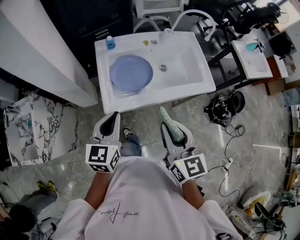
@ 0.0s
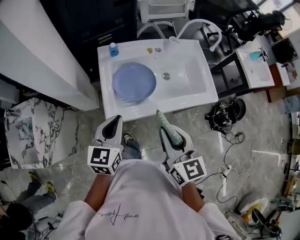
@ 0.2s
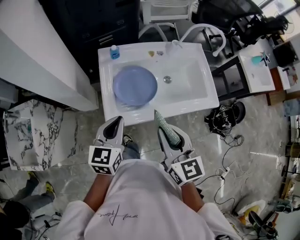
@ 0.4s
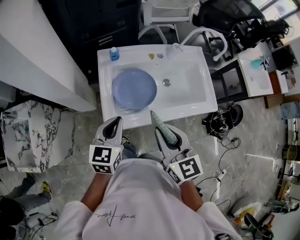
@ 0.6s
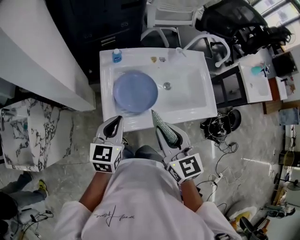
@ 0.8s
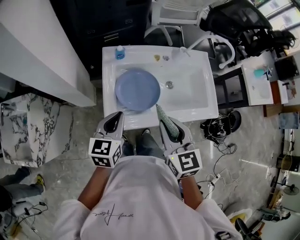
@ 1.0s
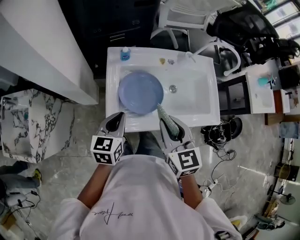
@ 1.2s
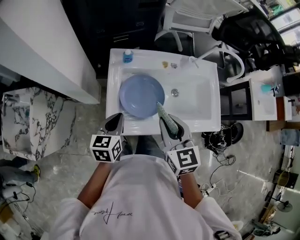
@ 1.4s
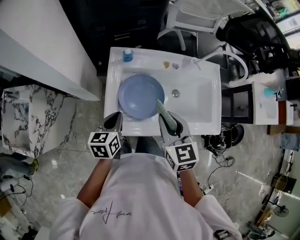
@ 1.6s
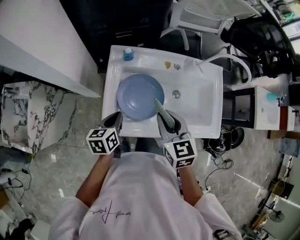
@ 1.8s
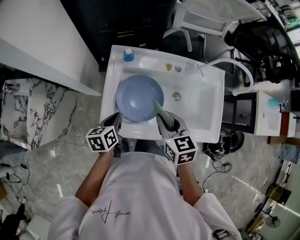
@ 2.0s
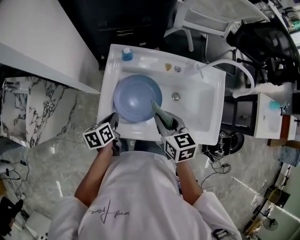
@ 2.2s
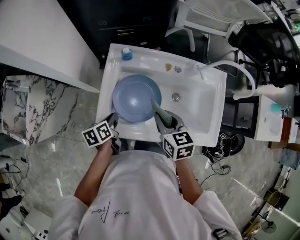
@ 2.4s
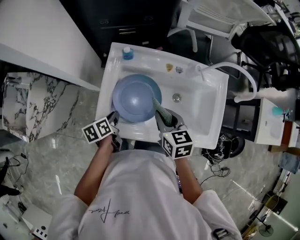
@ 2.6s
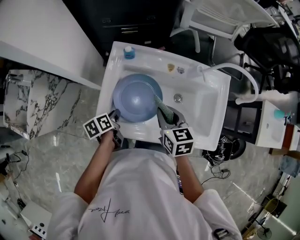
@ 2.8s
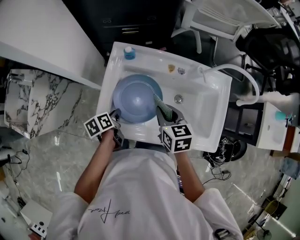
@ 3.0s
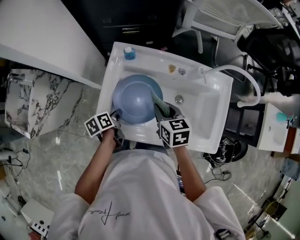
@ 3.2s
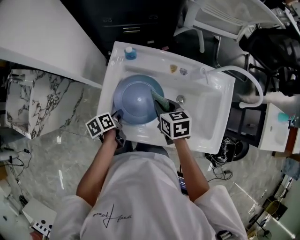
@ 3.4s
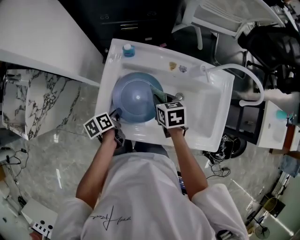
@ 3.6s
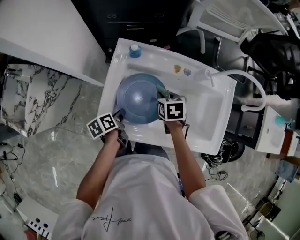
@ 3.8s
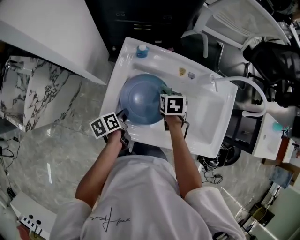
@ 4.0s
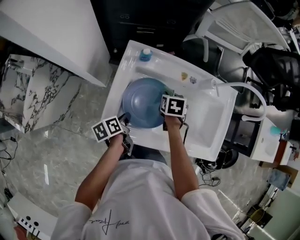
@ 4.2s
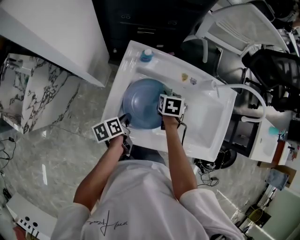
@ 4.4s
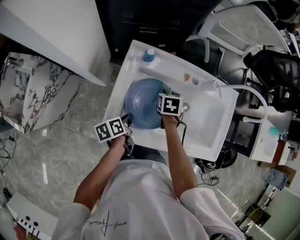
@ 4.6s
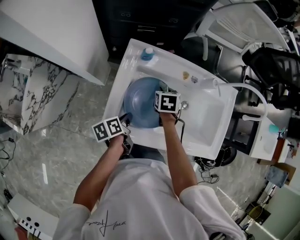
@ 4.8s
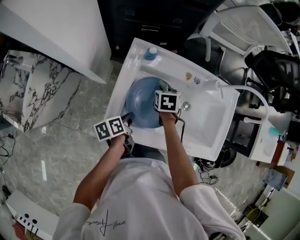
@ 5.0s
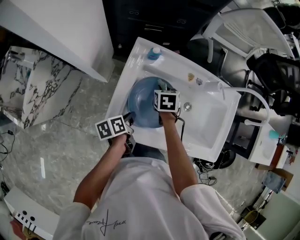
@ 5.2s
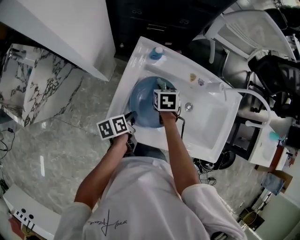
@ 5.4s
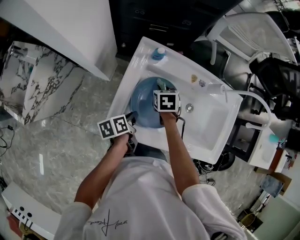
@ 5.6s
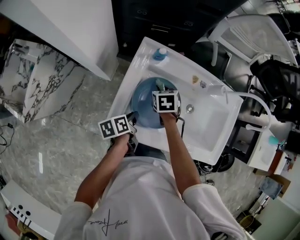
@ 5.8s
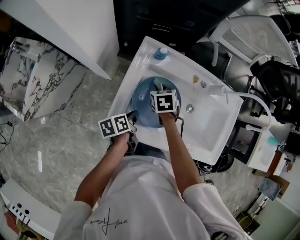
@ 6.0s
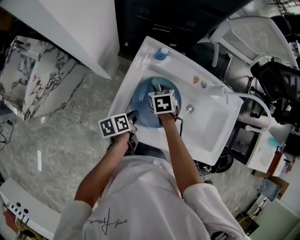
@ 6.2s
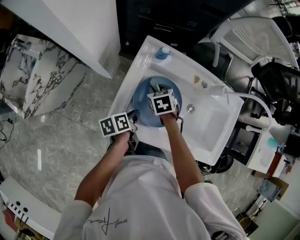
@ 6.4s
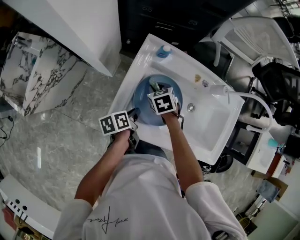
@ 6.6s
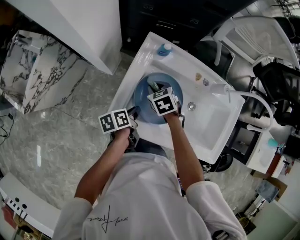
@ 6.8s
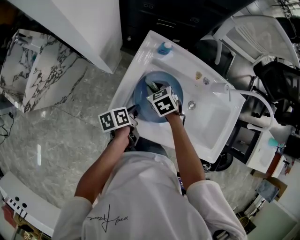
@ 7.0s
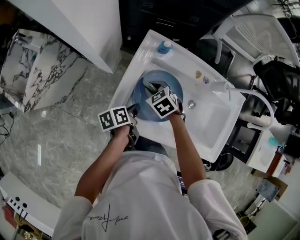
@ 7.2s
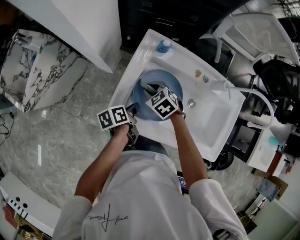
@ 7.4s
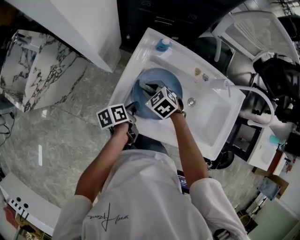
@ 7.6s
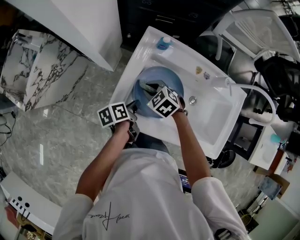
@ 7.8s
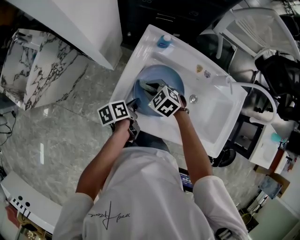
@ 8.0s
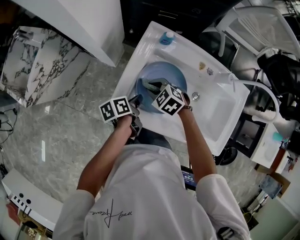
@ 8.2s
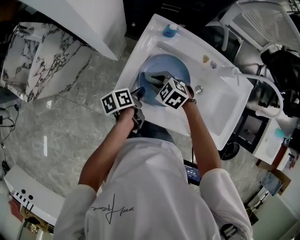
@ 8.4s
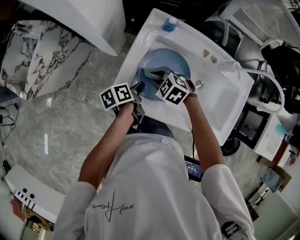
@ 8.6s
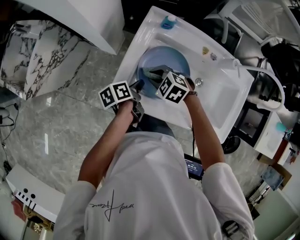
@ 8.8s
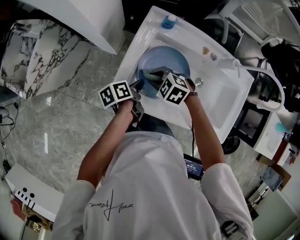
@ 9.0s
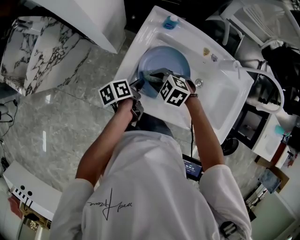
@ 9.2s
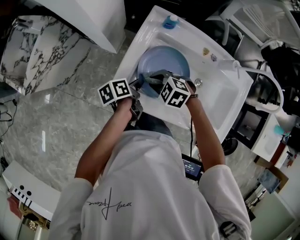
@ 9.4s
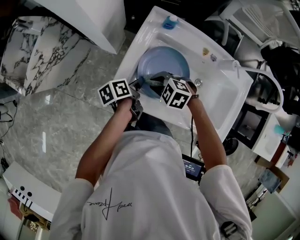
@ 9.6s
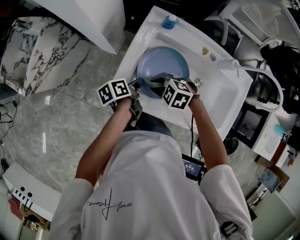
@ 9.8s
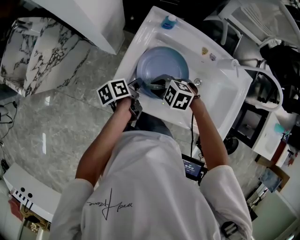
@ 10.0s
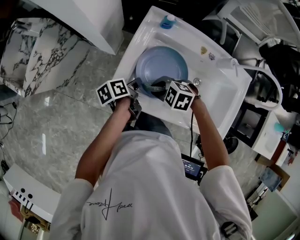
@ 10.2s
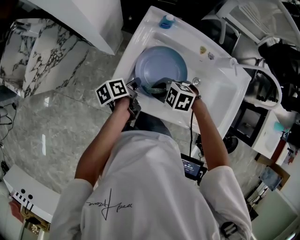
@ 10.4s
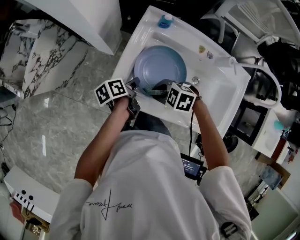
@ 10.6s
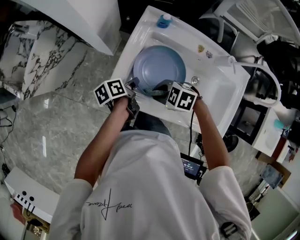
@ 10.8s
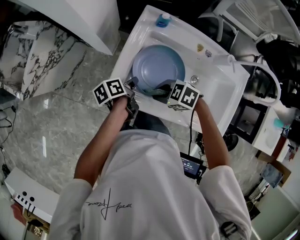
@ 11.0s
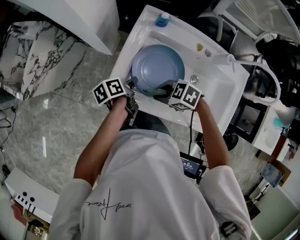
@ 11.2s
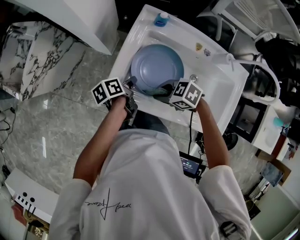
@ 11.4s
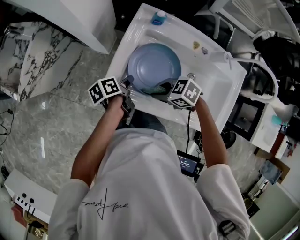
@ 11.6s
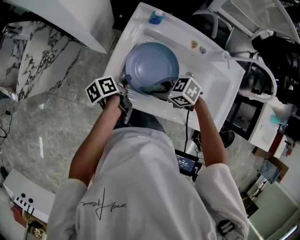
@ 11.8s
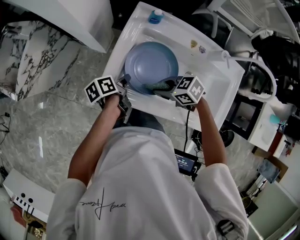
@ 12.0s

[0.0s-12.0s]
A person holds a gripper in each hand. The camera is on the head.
0.0s to 1.6s: The right gripper travels forward by approximately 20 cm, and turns by approximately 20 degrees; the left gripper is displaced forward and downward by about 20 cm, and turns by some 30 degrees.
1.6s to 3.0s: The left gripper heads downward, covering approximately 10 cm, and swivels about 40 degrees. The right gripper travels downward, forward and to the right by some 15 cm, and swivels some 20 degrees.
3.0s to 4.4s: The right gripper goes approximately 15 cm downward and forward, and turns by roughly 30 degrees.
4.4s to 6.0s: The right gripper is displaced to the left by roughly 10 cm, and changes its angle by roughly 20 degrees.
6.0s to 7.6s: The right gripper moves backward and to the left, approximately 10 cm, and turns by about 40 degrees.
7.6s to 9.0s: The right gripper shifts roughly 5 cm backward.
9.0s to 10.4s: The right gripper moves some 5 cm.
10.4s to 12.0s: The right gripper turns by about 30 degrees.

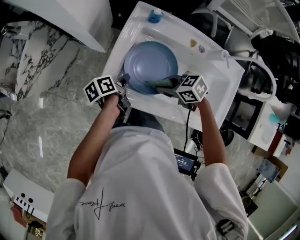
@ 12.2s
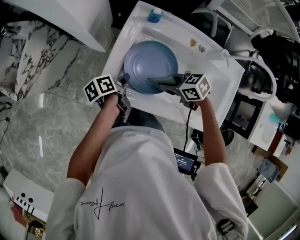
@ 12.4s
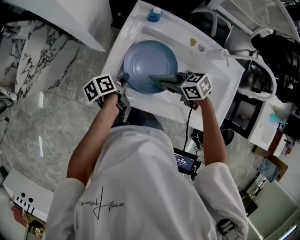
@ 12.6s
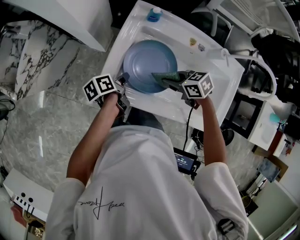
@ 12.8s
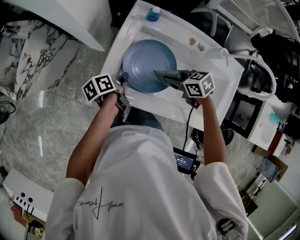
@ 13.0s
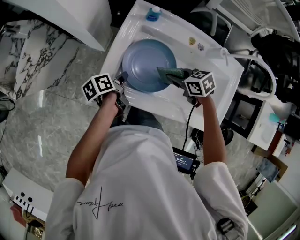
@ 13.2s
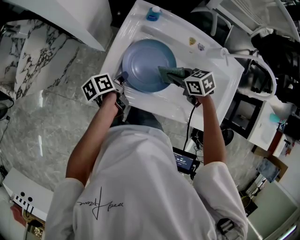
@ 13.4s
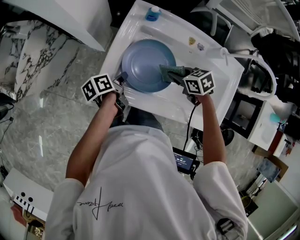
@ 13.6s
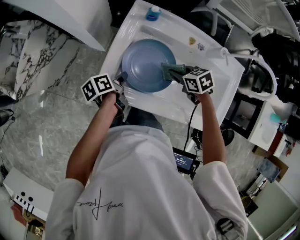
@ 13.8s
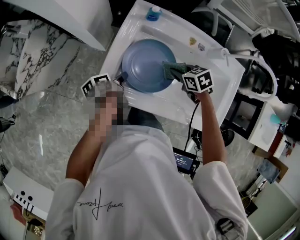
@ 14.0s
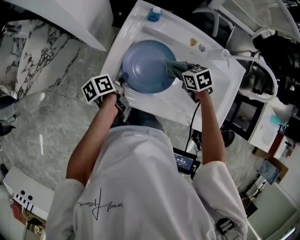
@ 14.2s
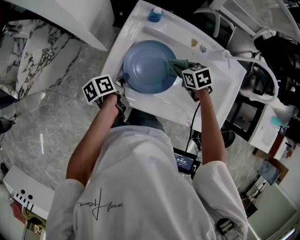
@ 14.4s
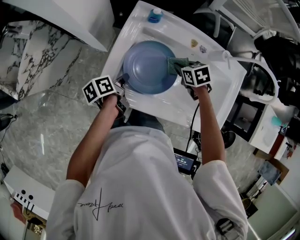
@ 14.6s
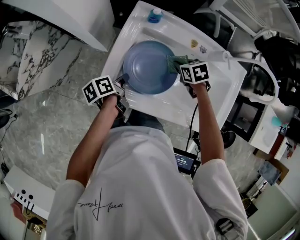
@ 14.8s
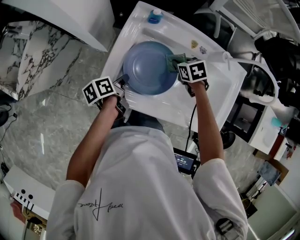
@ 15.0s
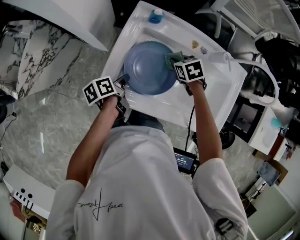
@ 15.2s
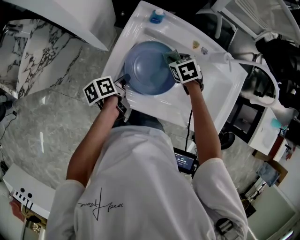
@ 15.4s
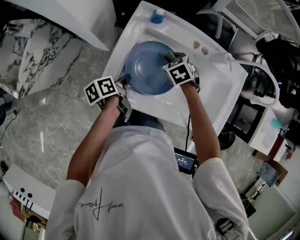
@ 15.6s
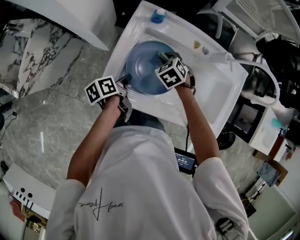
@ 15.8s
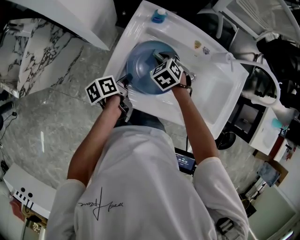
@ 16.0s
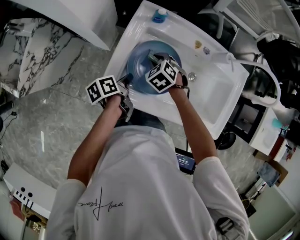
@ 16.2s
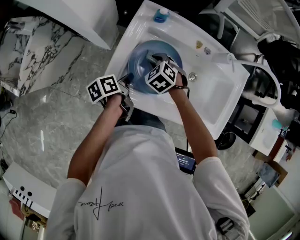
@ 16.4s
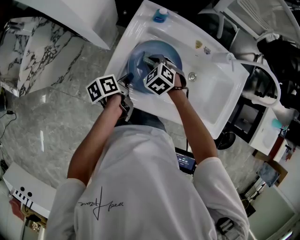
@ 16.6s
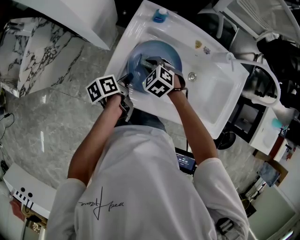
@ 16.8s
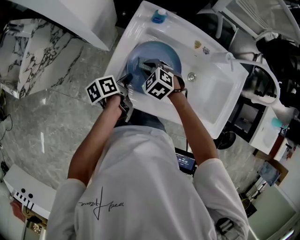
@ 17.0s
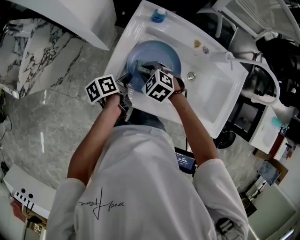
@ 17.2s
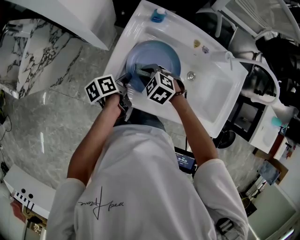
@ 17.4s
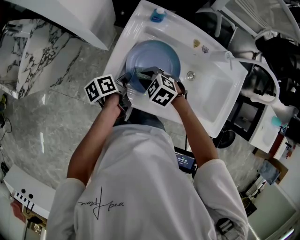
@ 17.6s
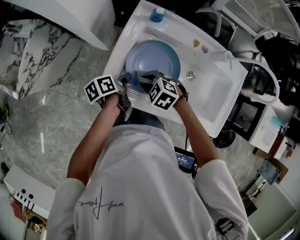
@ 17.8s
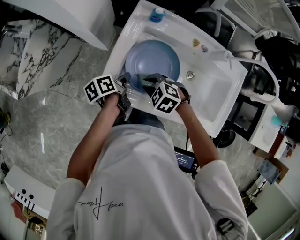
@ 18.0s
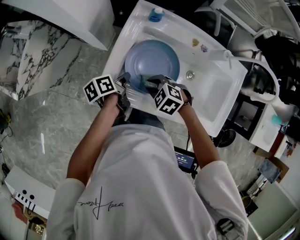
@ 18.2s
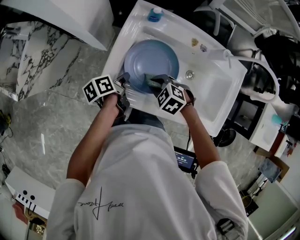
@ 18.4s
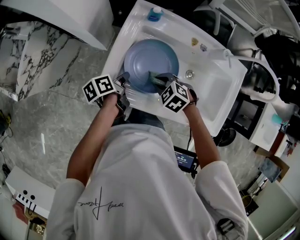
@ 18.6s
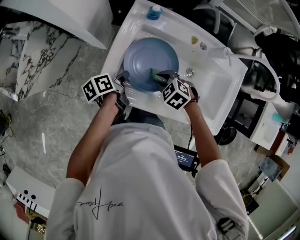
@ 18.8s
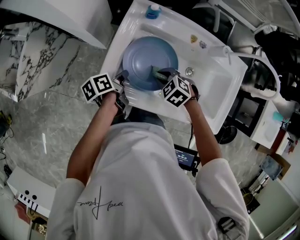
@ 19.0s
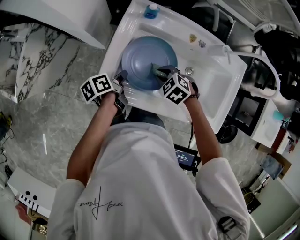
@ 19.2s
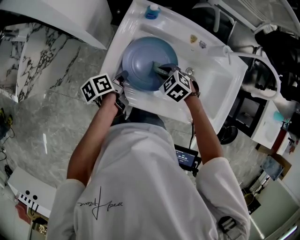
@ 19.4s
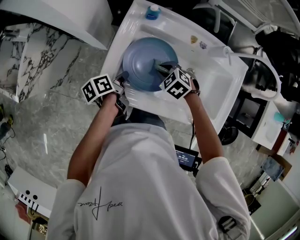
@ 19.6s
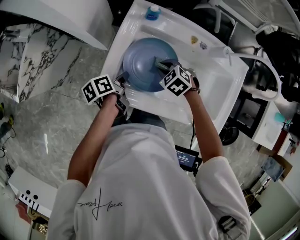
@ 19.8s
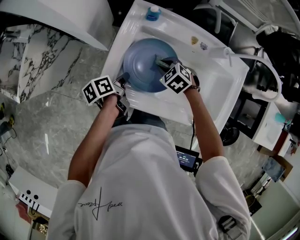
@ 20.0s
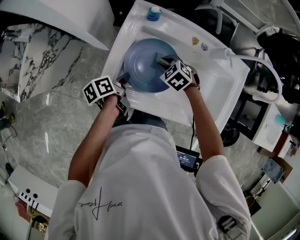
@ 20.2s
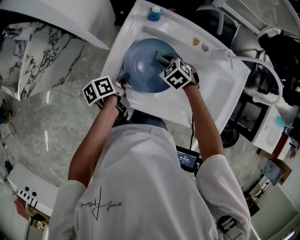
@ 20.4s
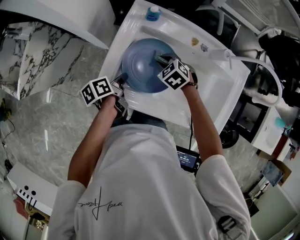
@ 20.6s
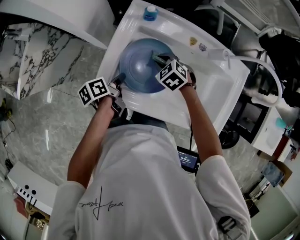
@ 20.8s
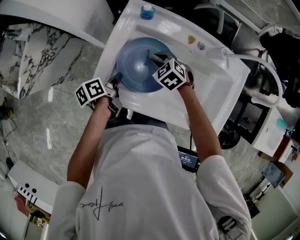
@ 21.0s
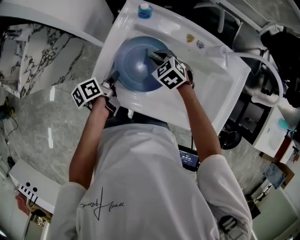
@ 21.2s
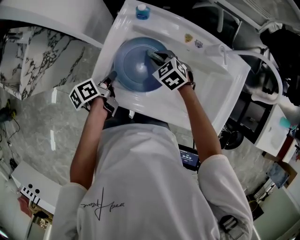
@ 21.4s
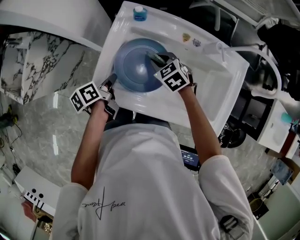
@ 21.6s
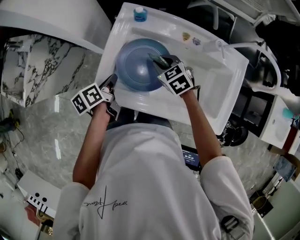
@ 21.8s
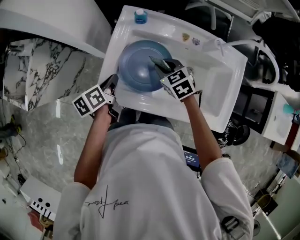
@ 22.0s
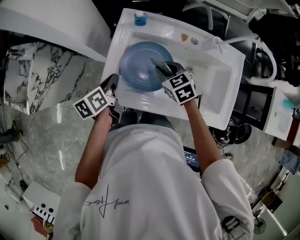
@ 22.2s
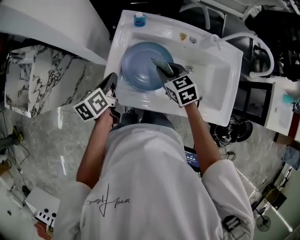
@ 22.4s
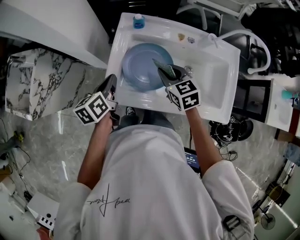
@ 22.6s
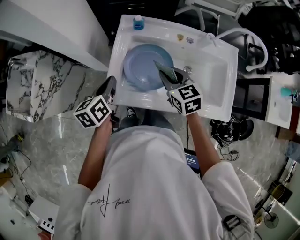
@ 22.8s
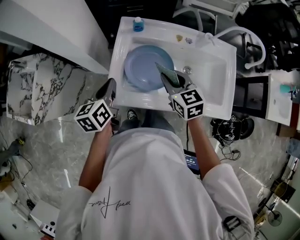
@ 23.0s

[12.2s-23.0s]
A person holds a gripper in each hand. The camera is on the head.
12.2s to 13.8s: The right gripper shifts by roughly 10 cm, and swivels approximately 20 degrees.
13.8s to 15.2s: The right gripper shifts roughly 5 cm forward.
15.2s to 16.8s: The right gripper is displaced to the left and backward by approximately 15 cm, and turns by roughly 30 degrees.
16.8s to 18.4s: The right gripper travels backward by some 10 cm.
18.4s to 20.0s: The right gripper heads forward and to the right, covering about 10 cm.
20.0s to 21.4s: There are only small adjustments of the grippers.
21.4s to 23.0s: The left gripper goes about 15 cm upward, and rolls clockwise, seen from behind, by approximately 40 degrees. The right gripper shifts roughly 15 cm upward and backward, and rotates roughly 40 degrees.

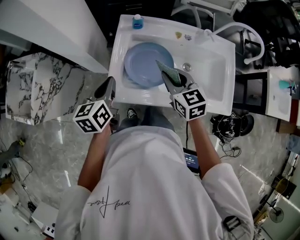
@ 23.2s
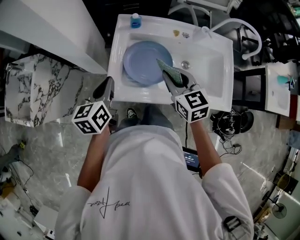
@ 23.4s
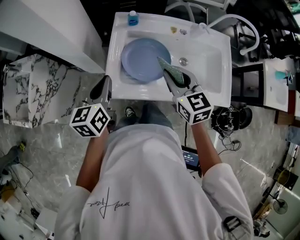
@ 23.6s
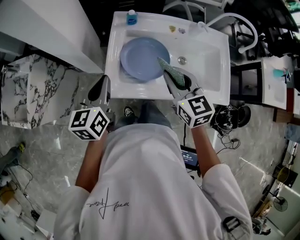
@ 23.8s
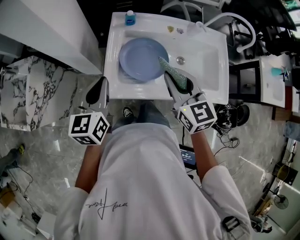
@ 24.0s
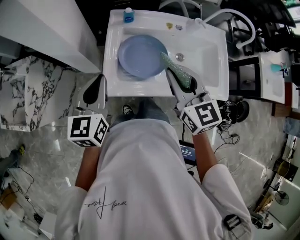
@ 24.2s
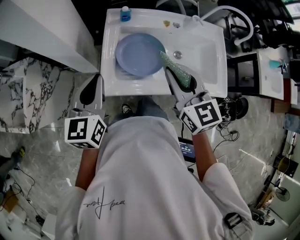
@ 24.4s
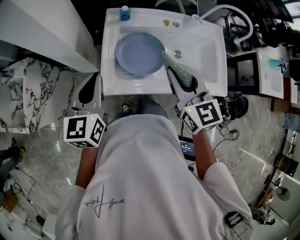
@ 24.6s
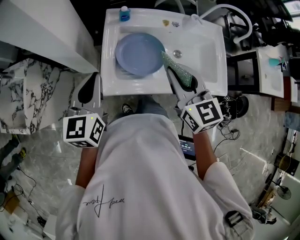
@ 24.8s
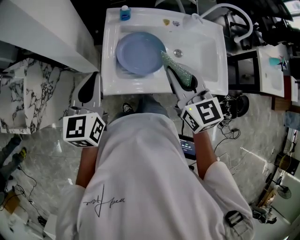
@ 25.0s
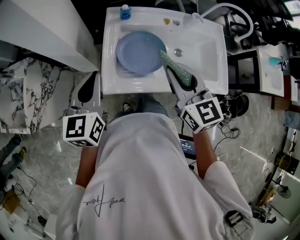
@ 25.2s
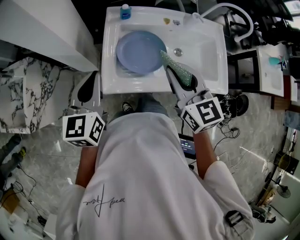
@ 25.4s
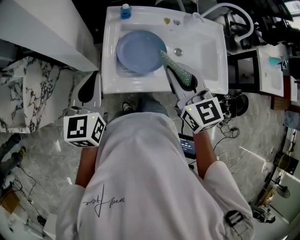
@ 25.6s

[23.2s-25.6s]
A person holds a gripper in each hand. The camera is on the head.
23.2s to 24.4s: The left gripper heads upward, covering about 10 cm, and rotates some 20 degrees. The right gripper shifts roughly 10 cm upward and backward.
24.4s to 25.6s: Neither gripper changes place.
